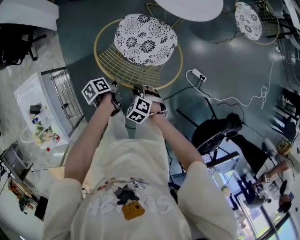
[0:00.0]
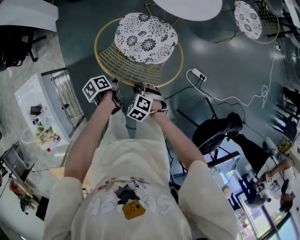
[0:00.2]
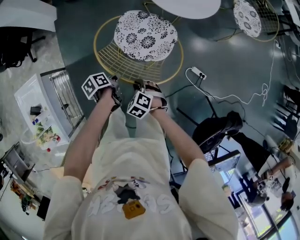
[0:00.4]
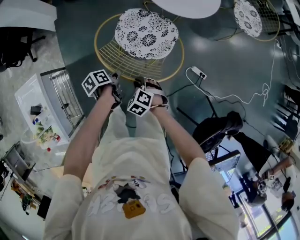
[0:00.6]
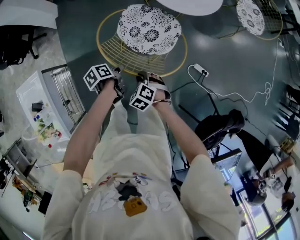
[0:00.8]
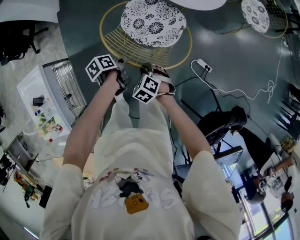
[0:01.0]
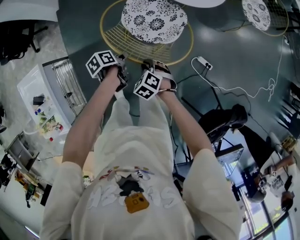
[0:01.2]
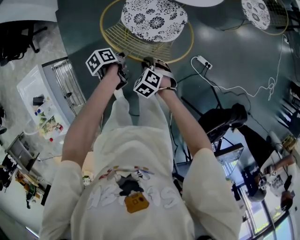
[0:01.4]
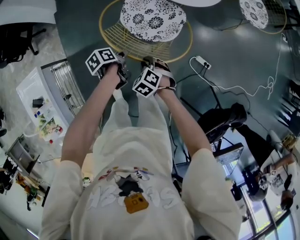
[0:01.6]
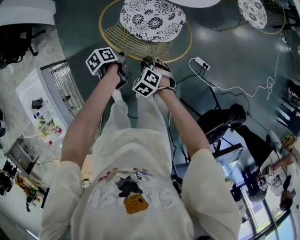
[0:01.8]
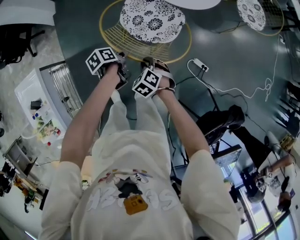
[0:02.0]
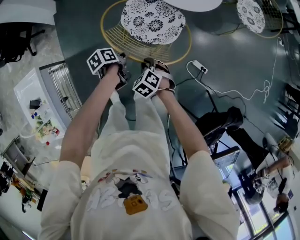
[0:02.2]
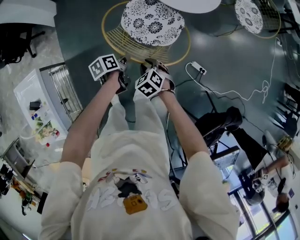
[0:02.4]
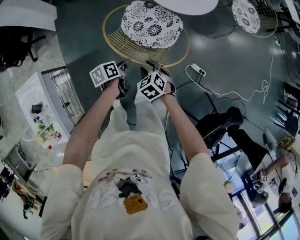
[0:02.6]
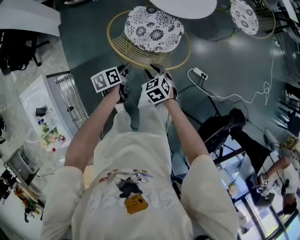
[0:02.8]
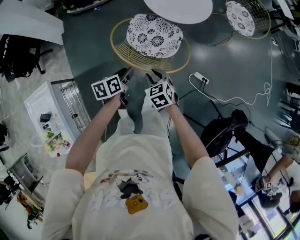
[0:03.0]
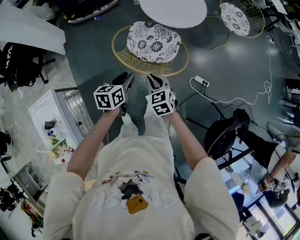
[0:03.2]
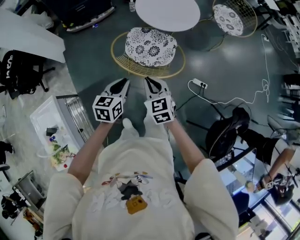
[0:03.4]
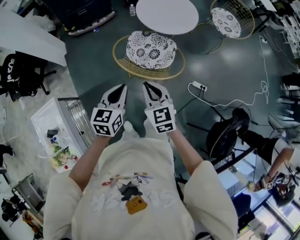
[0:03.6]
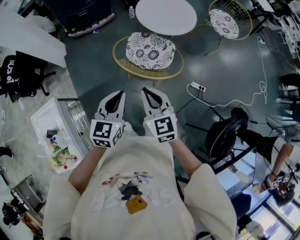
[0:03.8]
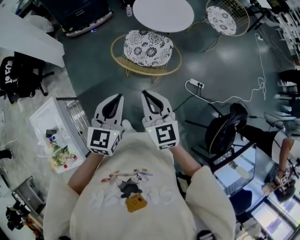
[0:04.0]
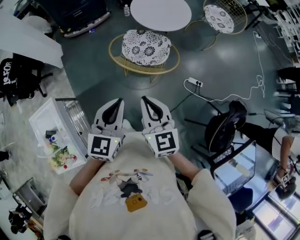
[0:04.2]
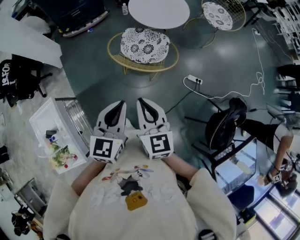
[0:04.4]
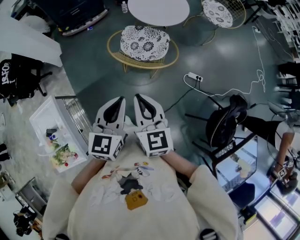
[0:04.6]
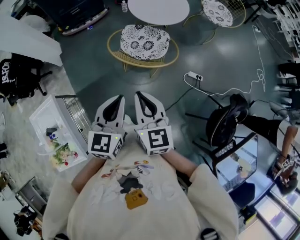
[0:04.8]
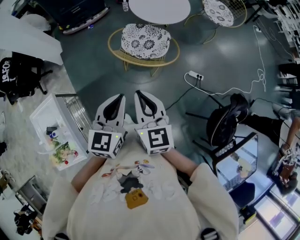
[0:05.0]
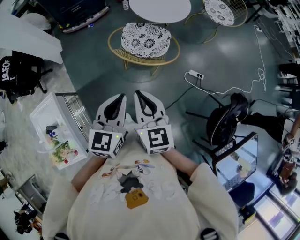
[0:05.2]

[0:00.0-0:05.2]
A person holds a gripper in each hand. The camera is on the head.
0:00.0 to 0:01.8: The two grippers go approximately 10 cm forward and to the right.
0:01.8 to 0:03.4: Both grippers move upward, about 20 cm. The left gripper rolls clockwise, seen from behind, by some 60 degrees, and opens, then closes again, while the right gripper points its fingers about 40 degrees further upward.
0:03.4 to 0:05.2: Both grippers travel together upward and backward, approximately 20 cm. The right gripper rotates about 20 degrees.

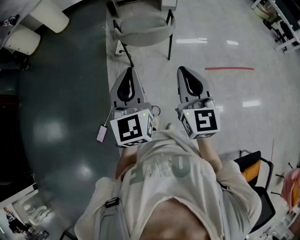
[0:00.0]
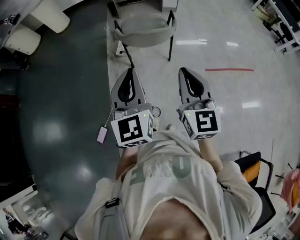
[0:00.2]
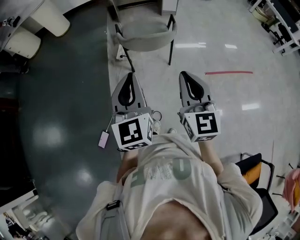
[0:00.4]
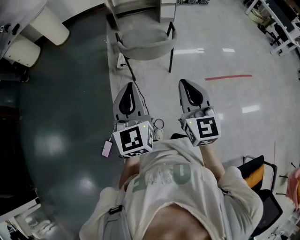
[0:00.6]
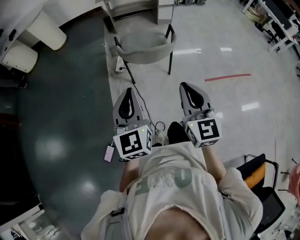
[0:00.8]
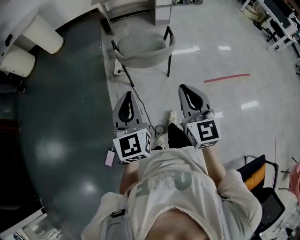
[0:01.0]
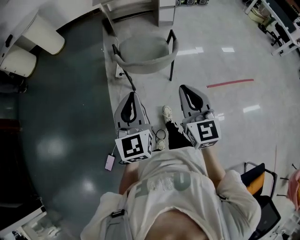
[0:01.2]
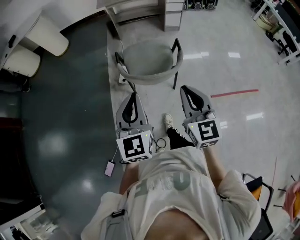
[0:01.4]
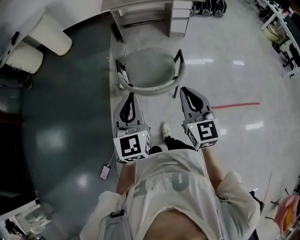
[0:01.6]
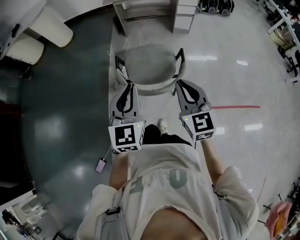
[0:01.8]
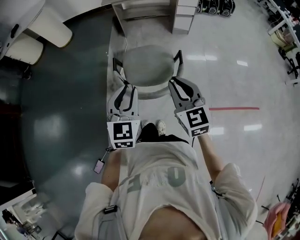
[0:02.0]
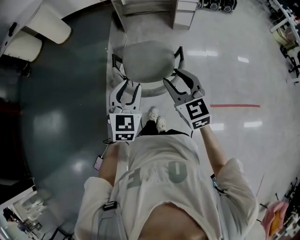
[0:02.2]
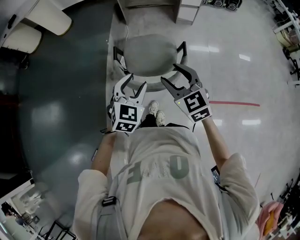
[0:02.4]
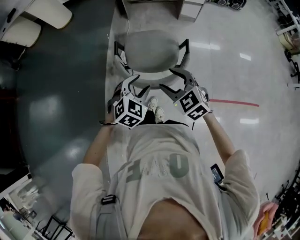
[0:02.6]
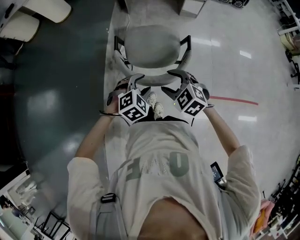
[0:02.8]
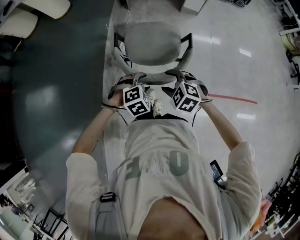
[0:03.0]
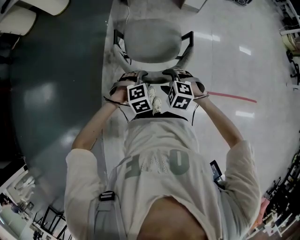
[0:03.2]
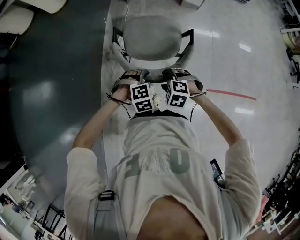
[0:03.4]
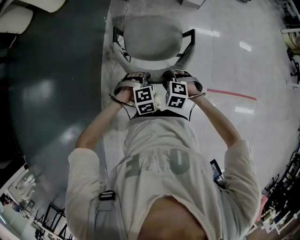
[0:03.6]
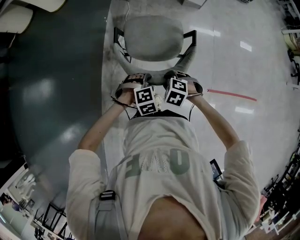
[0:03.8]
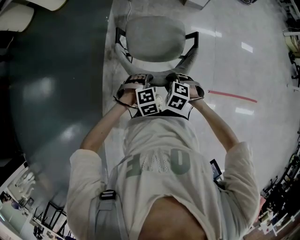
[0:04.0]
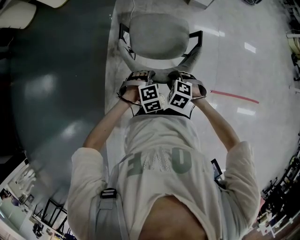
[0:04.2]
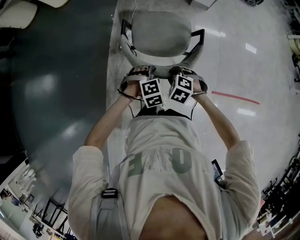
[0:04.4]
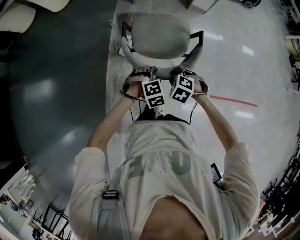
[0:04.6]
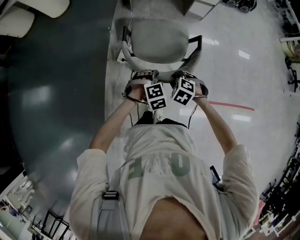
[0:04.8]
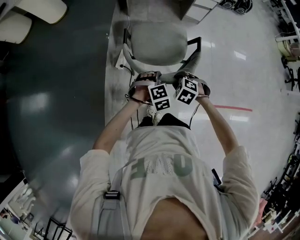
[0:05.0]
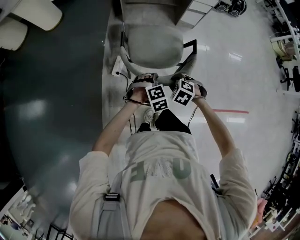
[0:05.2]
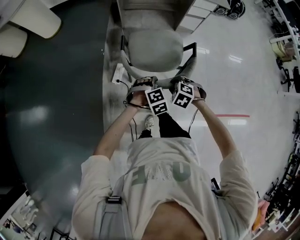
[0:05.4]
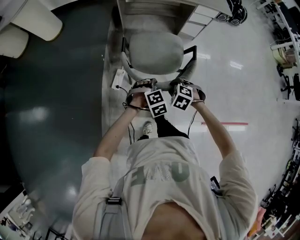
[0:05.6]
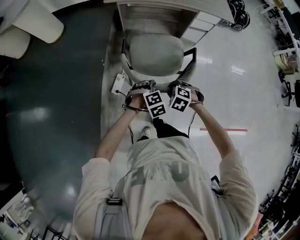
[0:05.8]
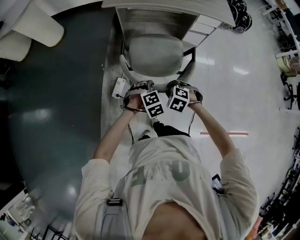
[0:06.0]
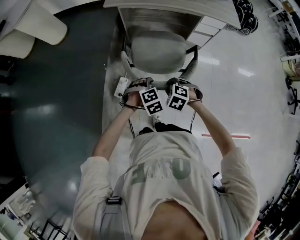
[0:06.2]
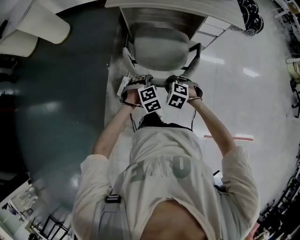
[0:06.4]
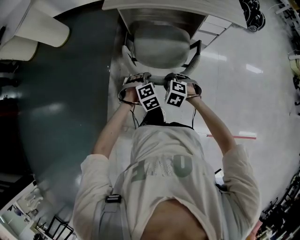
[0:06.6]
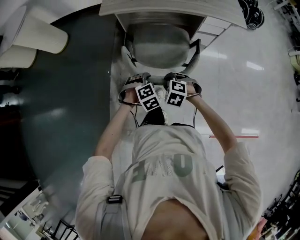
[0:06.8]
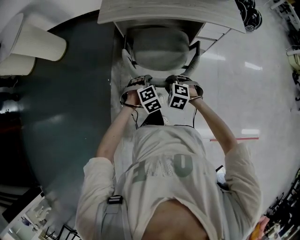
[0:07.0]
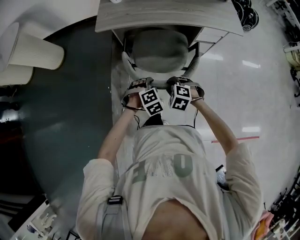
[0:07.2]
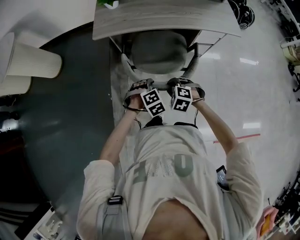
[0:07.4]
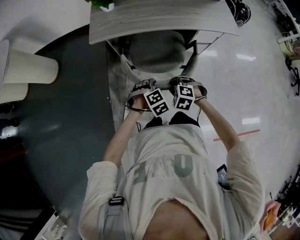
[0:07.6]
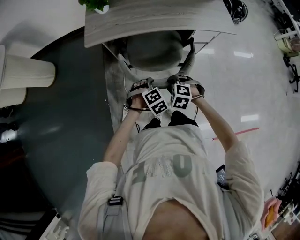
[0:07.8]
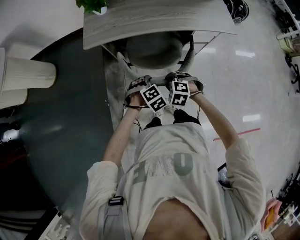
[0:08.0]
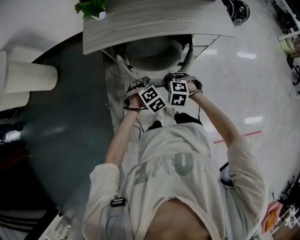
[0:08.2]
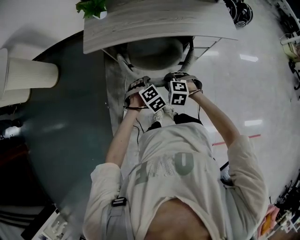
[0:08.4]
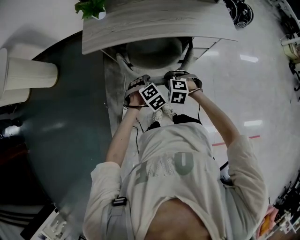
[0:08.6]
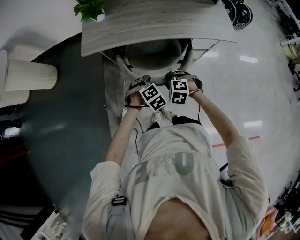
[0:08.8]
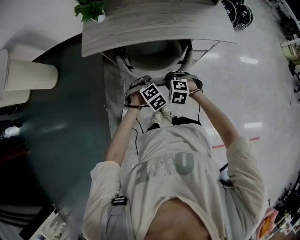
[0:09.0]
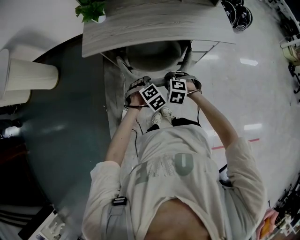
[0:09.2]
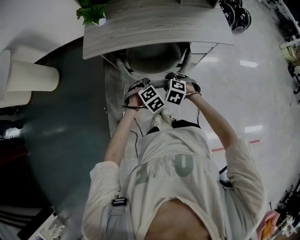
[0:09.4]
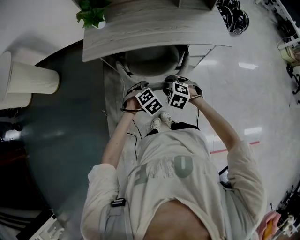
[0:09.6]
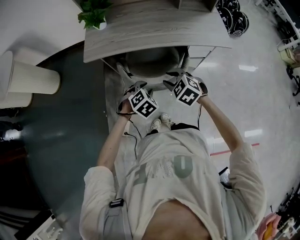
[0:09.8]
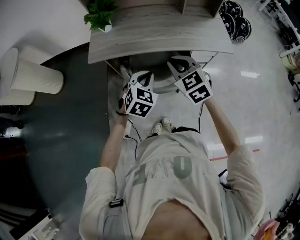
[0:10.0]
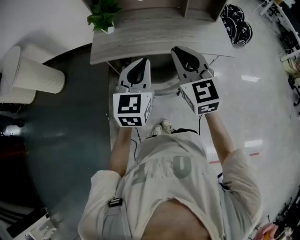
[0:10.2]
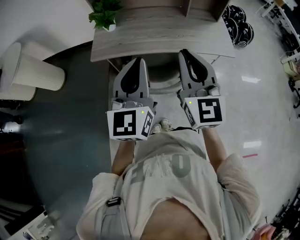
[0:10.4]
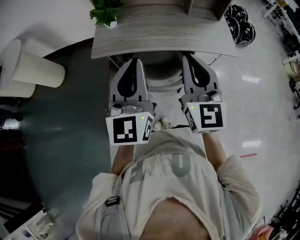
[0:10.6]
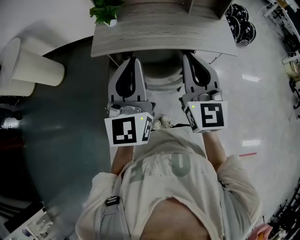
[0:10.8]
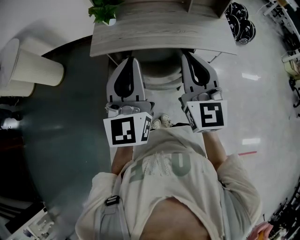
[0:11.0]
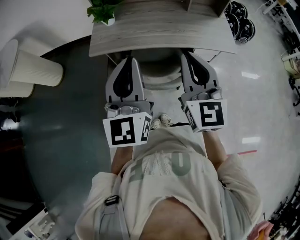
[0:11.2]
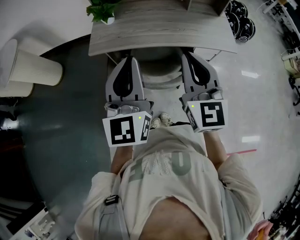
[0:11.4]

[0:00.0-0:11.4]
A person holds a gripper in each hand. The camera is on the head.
0:00.0 to 0:01.4: Both grippers travel together forward, about 20 cm.
0:01.4 to 0:02.8: The left gripper goes about 25 cm downward, forward and to the right, tips its fingers downward by some 50 degrees, and opens its fingers. Meanwhile the right gripper travels downward and forward by about 25 cm, angles its fingers downward, by some 40 degrees, and opens up.
0:02.8 to 0:04.2: The grippers both shift downward by approximately 10 cm. The right gripper swivels approximately 30 degrees, and closes its fingers.
0:04.2 to 0:05.6: Both grippers travel together forward, about 25 cm.
0:05.6 to 0:07.2: The two grippers go some 30 cm forward.
0:07.2 to 0:08.6: The grippers both shift forward and to the right by approximately 15 cm.
0:08.6 to 0:10.0: The two grippers go about 20 cm upward. The left gripper tips its fingers upward by about 30 degrees, and closes its fingers. The right gripper tilts its fingers about 40 degrees upward.
0:10.0 to 0:11.4: Both grippers travel together upward, approximately 20 cm. The right gripper rotates approximately 30 degrees; the left gripper tilts its fingers some 40 degrees upward.

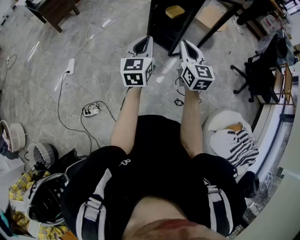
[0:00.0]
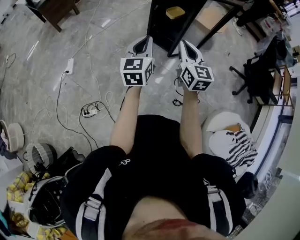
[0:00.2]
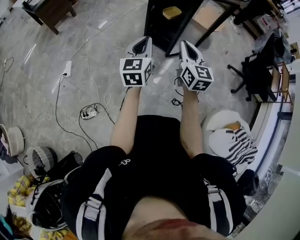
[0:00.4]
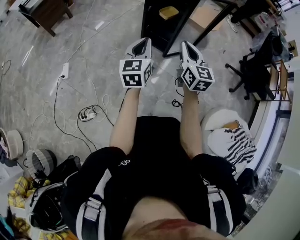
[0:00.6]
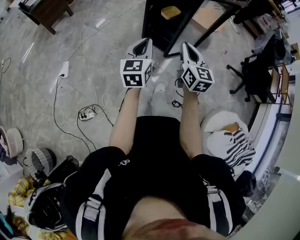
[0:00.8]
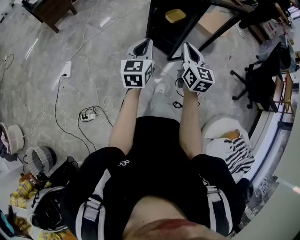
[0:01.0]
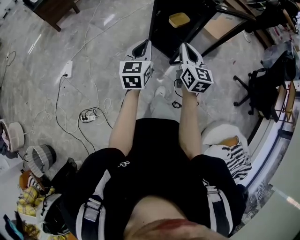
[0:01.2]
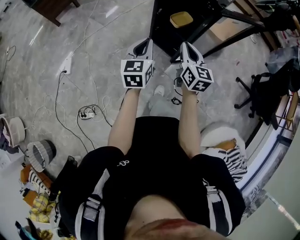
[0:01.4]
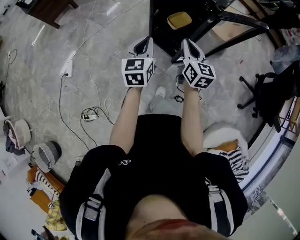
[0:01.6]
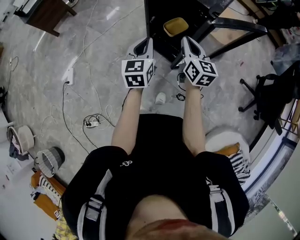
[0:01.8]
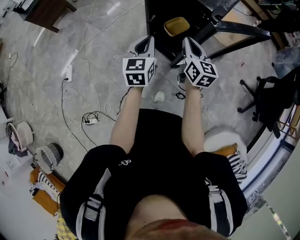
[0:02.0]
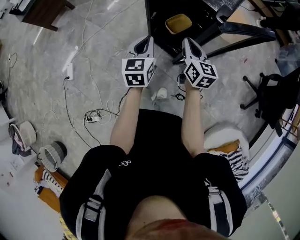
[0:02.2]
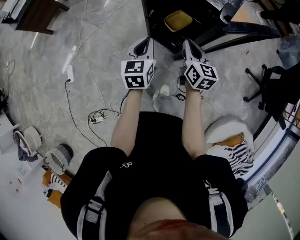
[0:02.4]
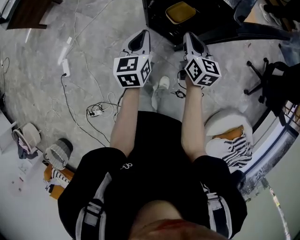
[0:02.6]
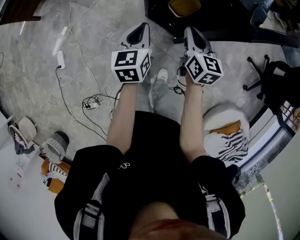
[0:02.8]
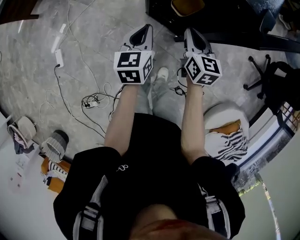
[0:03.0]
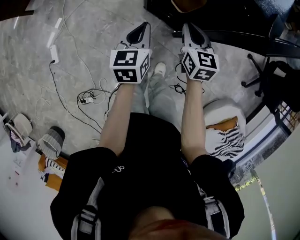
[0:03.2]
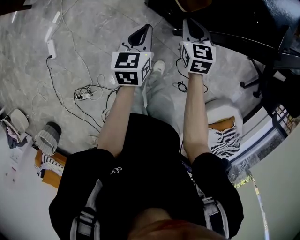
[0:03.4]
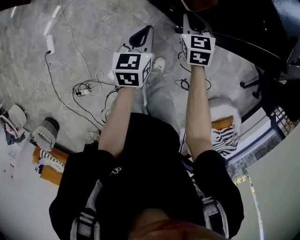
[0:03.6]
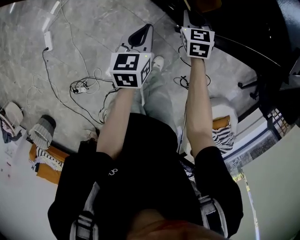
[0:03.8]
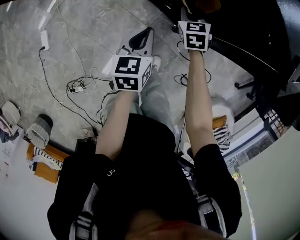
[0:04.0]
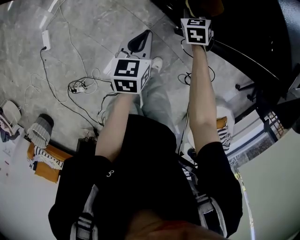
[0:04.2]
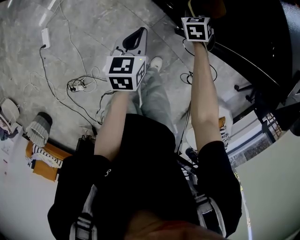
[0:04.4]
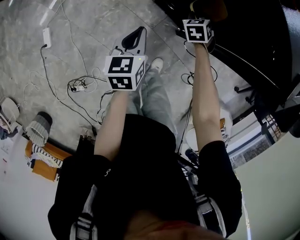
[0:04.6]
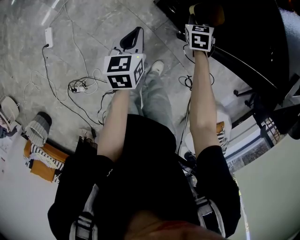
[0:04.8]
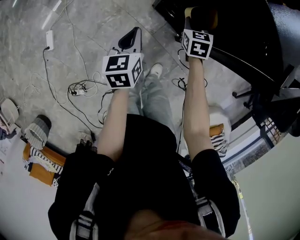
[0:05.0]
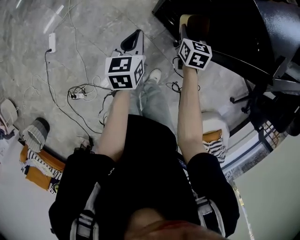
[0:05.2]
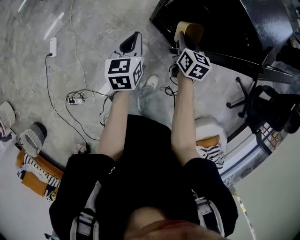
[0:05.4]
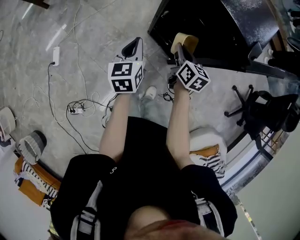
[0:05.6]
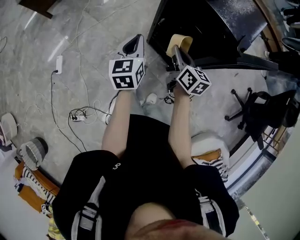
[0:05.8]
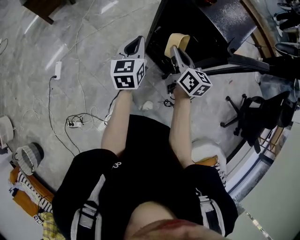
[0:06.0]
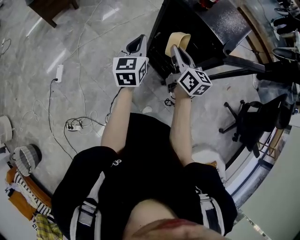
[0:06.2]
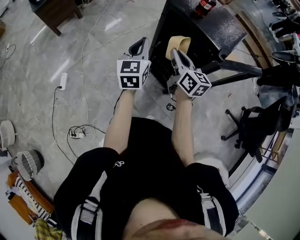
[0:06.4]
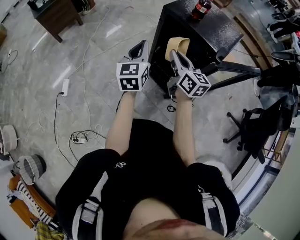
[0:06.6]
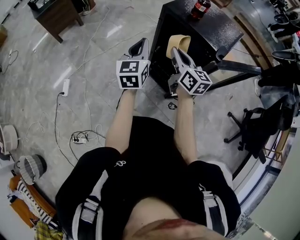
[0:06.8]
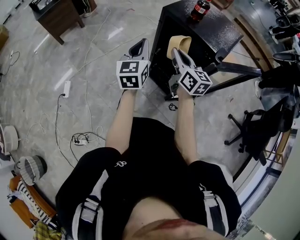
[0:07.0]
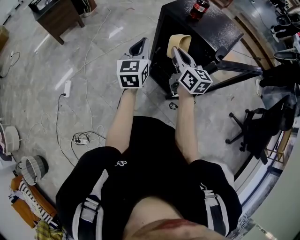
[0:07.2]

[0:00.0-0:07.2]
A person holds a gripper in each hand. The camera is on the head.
0:00.0 to 0:01.4: The grippers both shift forward by approximately 25 cm.
0:01.4 to 0:02.8: Both grippers move forward and downward, about 25 cm.
0:02.8 to 0:04.4: The right gripper moves downward and forward, about 25 cm, and tilts its fingers about 40 degrees downward; the left gripper moves downward and to the left, approximately 15 cm.
0:04.4 to 0:05.8: The right gripper moves upward and backward, approximately 30 cm, and points its fingers approximately 40 degrees further upward; the left gripper goes approximately 20 cm upward, and rotates about 20 degrees.
0:05.8 to 0:07.2: The two grippers go about 15 cm upward. The right gripper turns by roughly 20 degrees.
